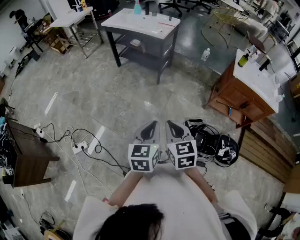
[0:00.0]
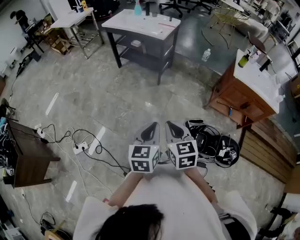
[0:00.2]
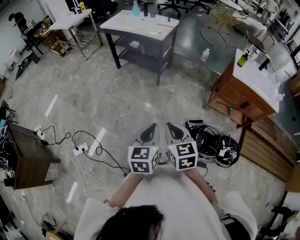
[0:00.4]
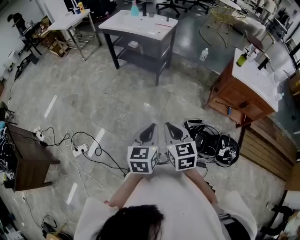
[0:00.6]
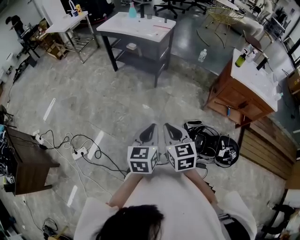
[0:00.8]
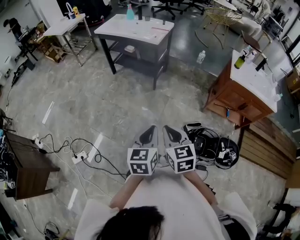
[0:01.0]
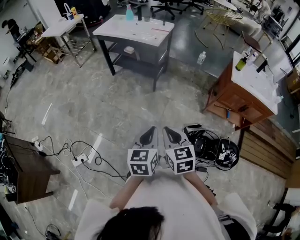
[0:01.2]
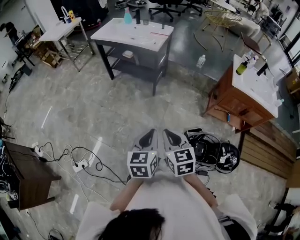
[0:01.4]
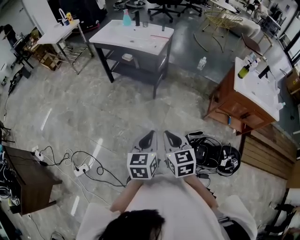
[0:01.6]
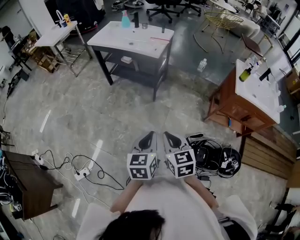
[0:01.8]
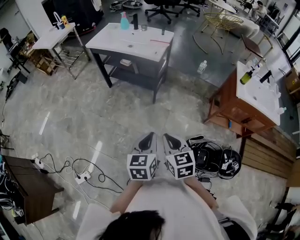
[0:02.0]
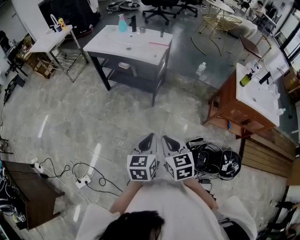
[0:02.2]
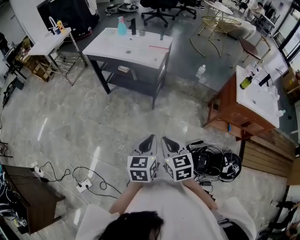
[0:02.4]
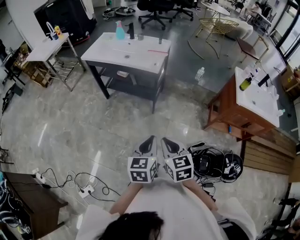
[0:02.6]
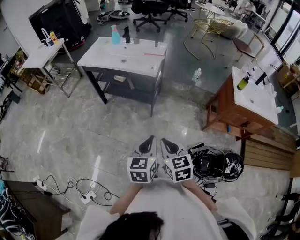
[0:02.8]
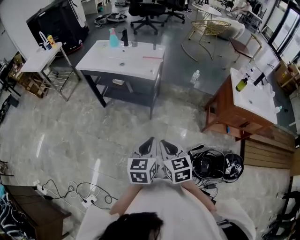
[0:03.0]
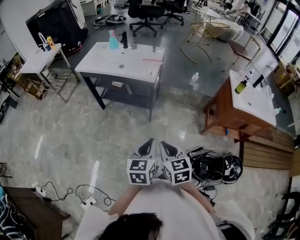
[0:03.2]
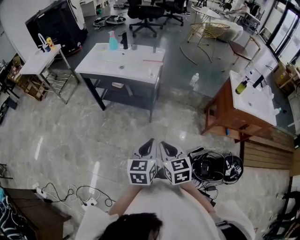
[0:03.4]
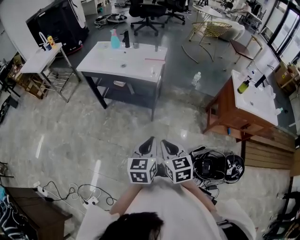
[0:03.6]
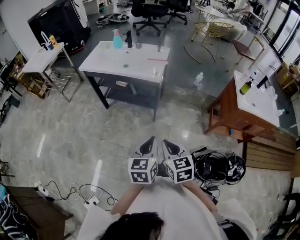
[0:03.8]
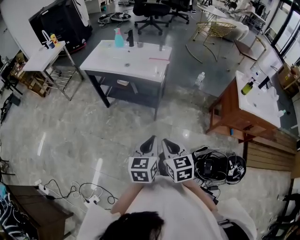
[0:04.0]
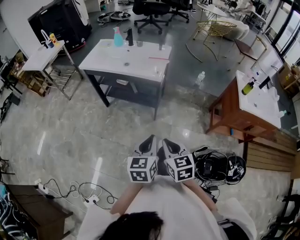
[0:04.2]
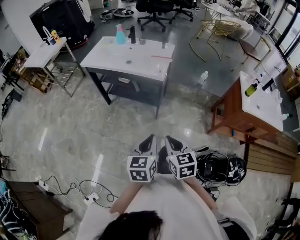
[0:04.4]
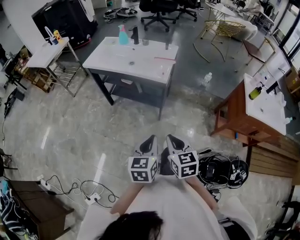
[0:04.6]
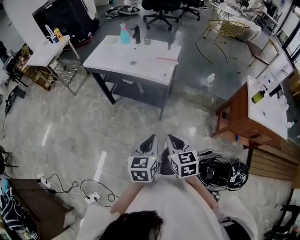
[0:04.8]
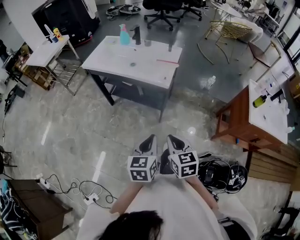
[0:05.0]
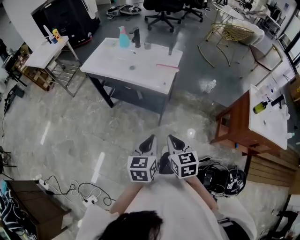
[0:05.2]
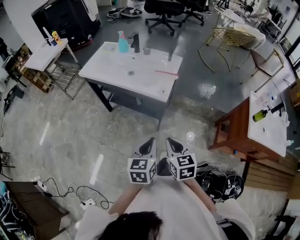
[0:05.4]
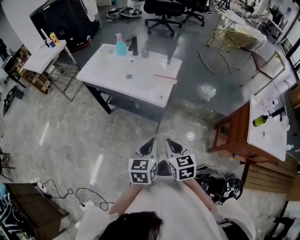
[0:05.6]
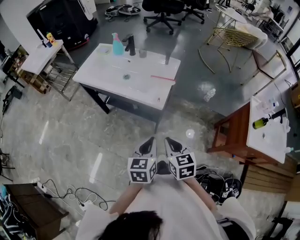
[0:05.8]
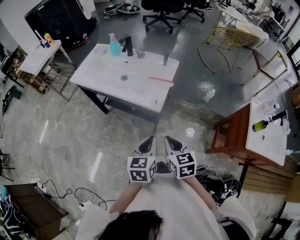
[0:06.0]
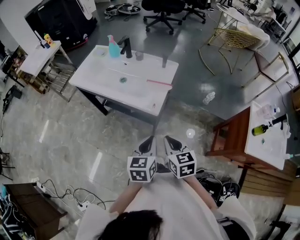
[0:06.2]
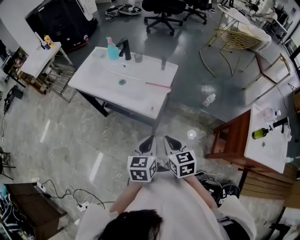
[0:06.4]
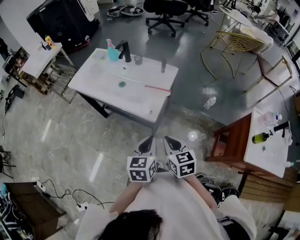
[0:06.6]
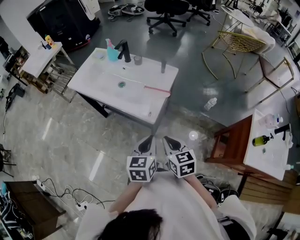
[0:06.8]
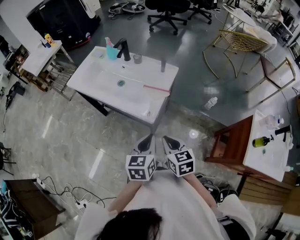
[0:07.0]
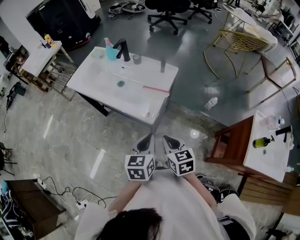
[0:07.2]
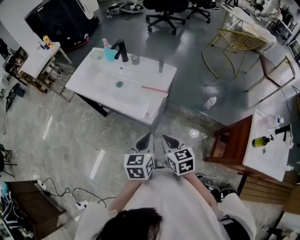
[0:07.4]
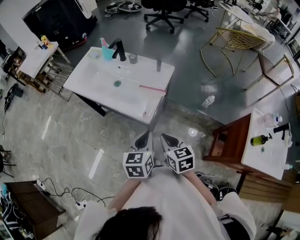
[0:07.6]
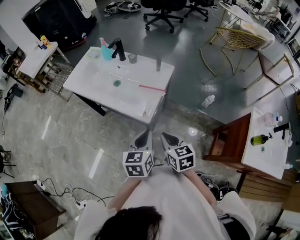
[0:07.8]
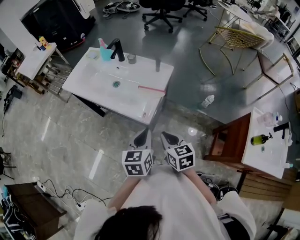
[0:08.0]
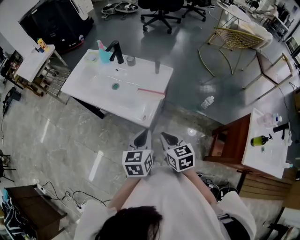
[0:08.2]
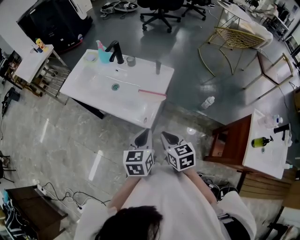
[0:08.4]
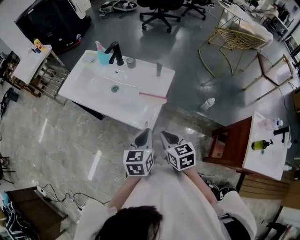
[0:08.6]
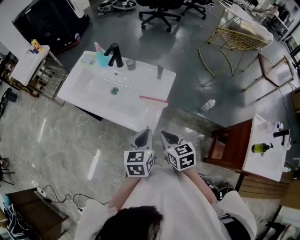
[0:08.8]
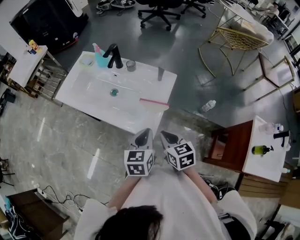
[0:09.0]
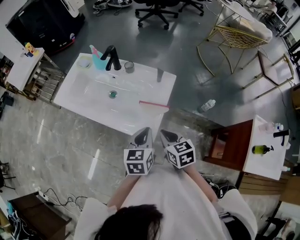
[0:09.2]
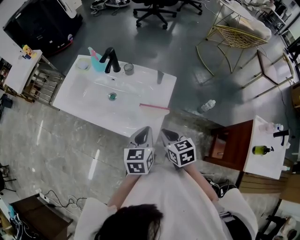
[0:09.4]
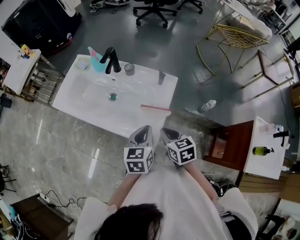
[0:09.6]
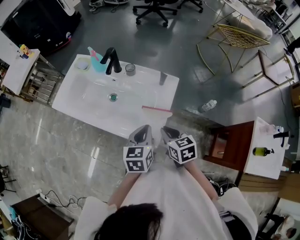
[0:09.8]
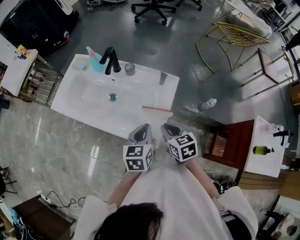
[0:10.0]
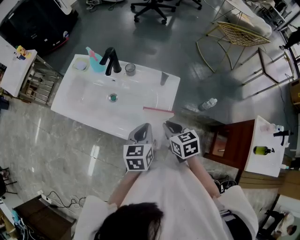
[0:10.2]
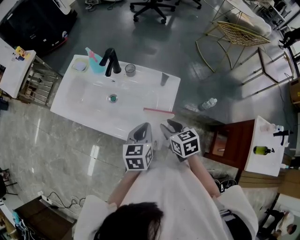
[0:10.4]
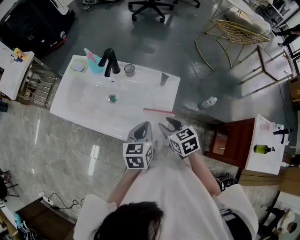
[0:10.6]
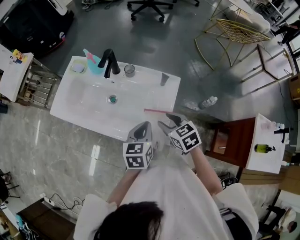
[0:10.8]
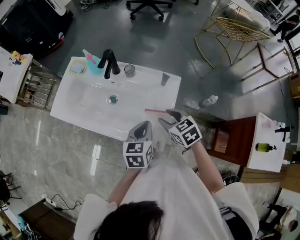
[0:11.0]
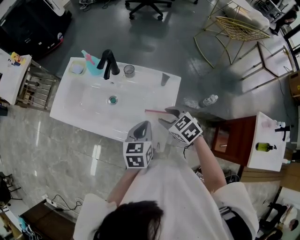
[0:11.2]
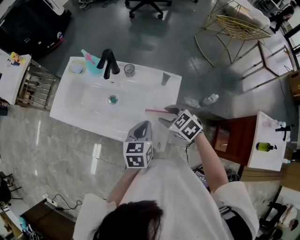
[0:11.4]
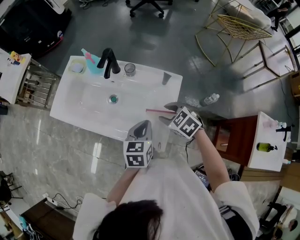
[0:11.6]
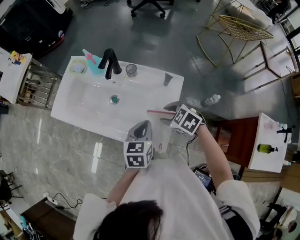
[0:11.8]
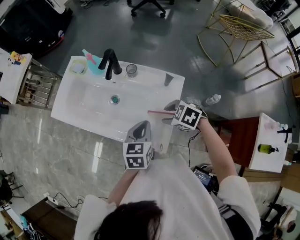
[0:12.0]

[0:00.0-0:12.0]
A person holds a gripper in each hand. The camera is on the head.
0:00.0 to 0:01.6: The two grippers go approximately 15 cm forward.
0:01.6 to 0:03.0: The right gripper heads forward and to the left, covering roughly 15 cm. The left gripper heads forward, covering approximately 15 cm.
0:03.0 to 0:04.4: The right gripper moves forward, approximately 5 cm; the left gripper ends up some 5 cm from where it was.
0:04.4 to 0:06.0: Both grippers move forward, about 25 cm.
0:06.0 to 0:07.6: The grippers both shift forward and to the right by about 10 cm.
0:07.6 to 0:09.0: Both grippers travel together forward, about 10 cm.
0:09.0 to 0:10.4: The grippers both shift forward by roughly 10 cm. The right gripper opens its fingers.
0:10.4 to 0:12.0: The right gripper moves forward, approximately 5 cm, and changes its angle by approximately 50 degrees.

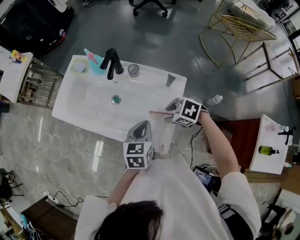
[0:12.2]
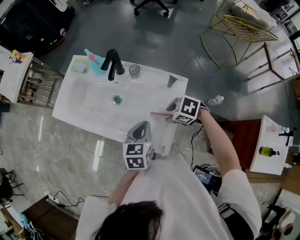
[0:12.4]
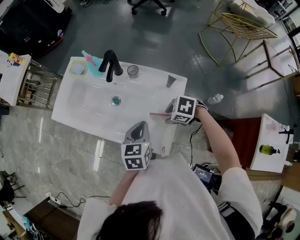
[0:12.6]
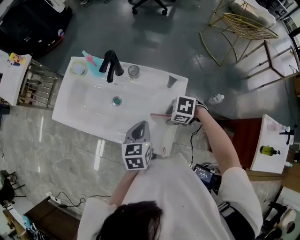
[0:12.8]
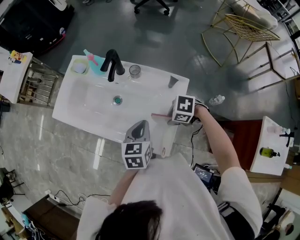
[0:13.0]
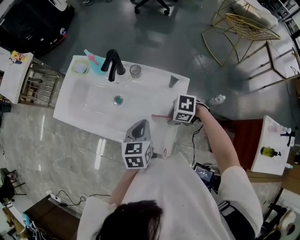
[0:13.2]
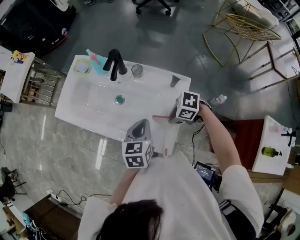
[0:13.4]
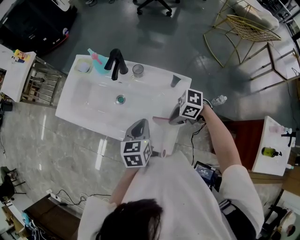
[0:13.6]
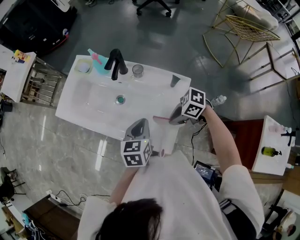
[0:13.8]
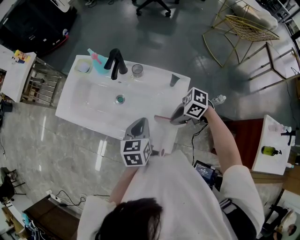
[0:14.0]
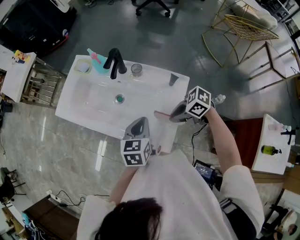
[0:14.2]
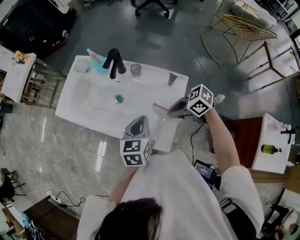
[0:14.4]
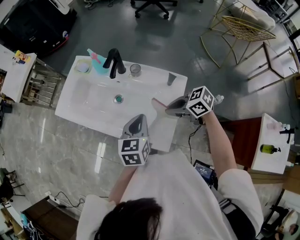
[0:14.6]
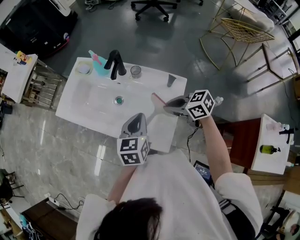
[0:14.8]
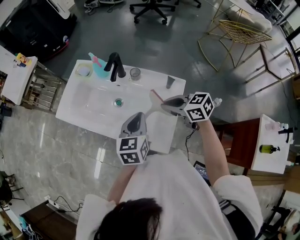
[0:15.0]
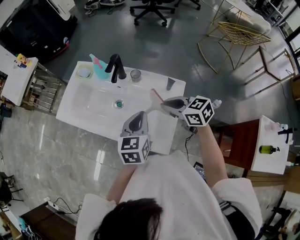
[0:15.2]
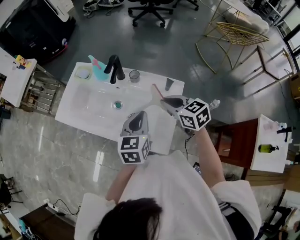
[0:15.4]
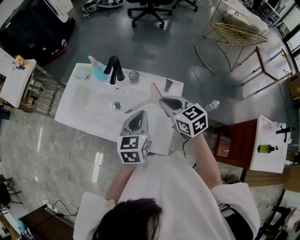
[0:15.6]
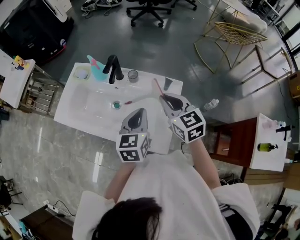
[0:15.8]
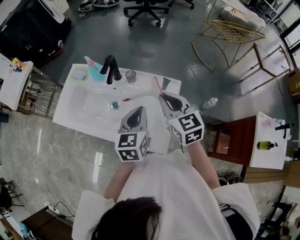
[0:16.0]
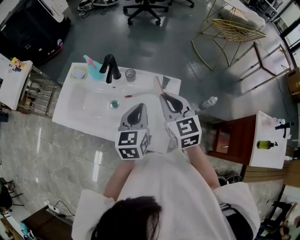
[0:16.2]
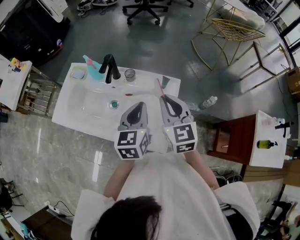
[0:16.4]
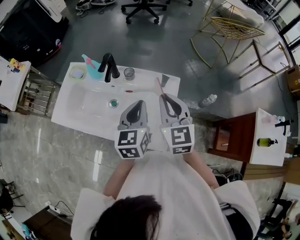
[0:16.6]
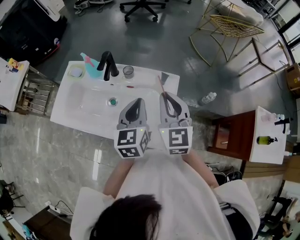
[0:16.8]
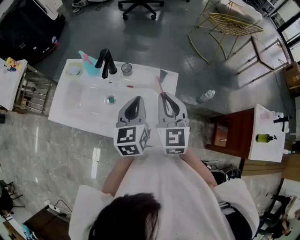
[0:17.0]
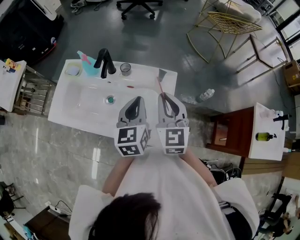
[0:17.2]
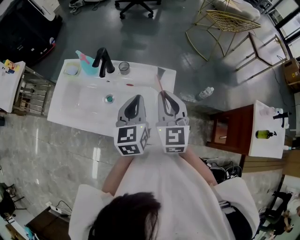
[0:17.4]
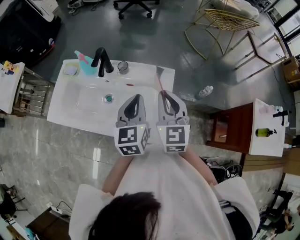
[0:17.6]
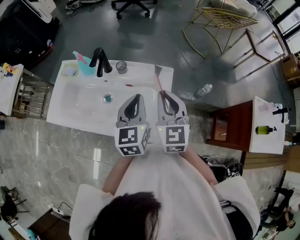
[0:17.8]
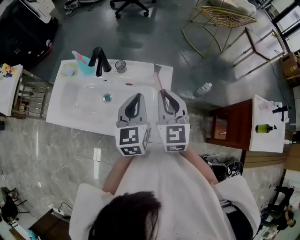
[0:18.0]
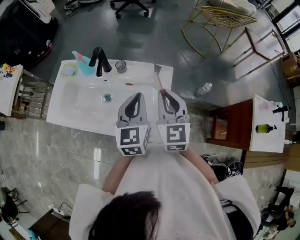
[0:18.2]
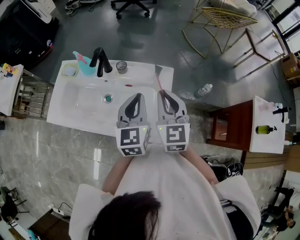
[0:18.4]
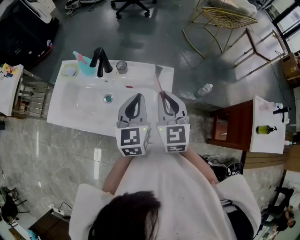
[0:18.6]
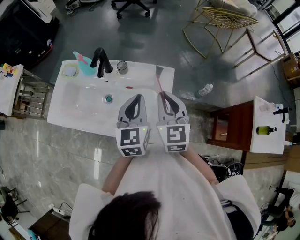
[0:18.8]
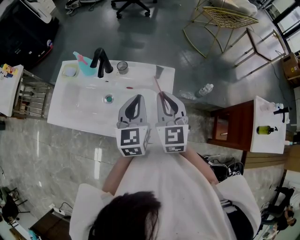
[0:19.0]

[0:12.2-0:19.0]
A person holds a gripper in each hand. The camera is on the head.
0:12.2 to 0:13.6: The right gripper rotates about 30 degrees, and closes up.
0:13.6 to 0:15.0: The right gripper moves upward, approximately 10 cm, and changes its angle by some 50 degrees. Meanwhile the left gripper is displaced upward by about 5 cm.
0:15.0 to 0:16.2: The right gripper is displaced upward by some 10 cm, and rotates about 50 degrees; the left gripper ends up about 5 cm from where it was.
0:16.2 to 0:19.0: The grippers move only a little.

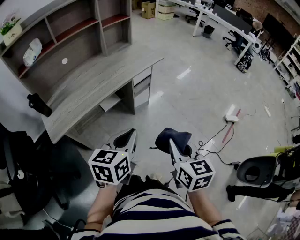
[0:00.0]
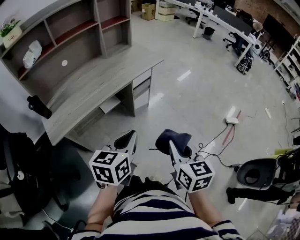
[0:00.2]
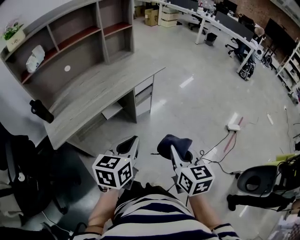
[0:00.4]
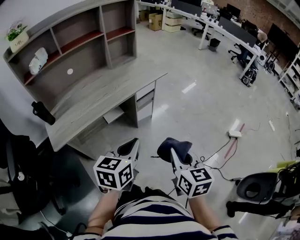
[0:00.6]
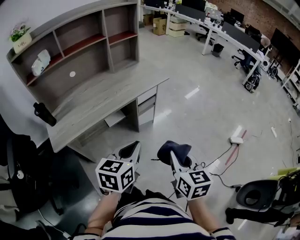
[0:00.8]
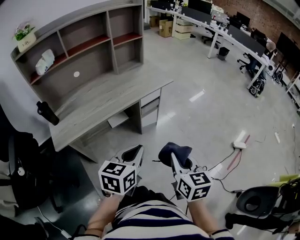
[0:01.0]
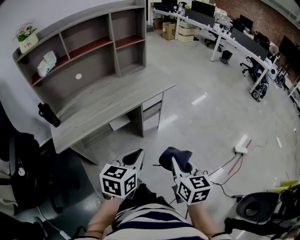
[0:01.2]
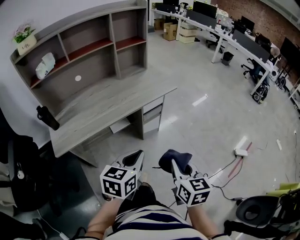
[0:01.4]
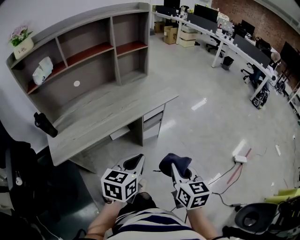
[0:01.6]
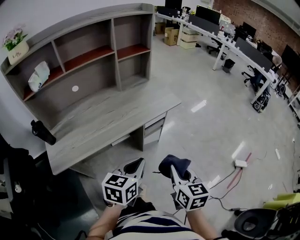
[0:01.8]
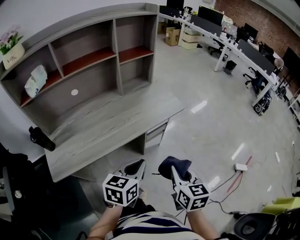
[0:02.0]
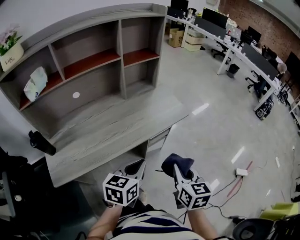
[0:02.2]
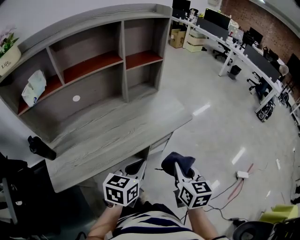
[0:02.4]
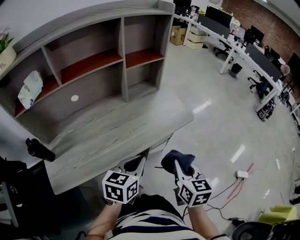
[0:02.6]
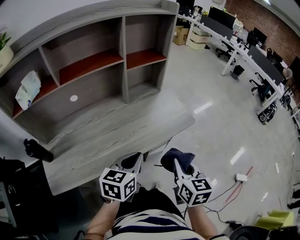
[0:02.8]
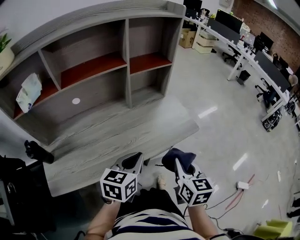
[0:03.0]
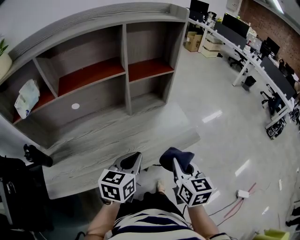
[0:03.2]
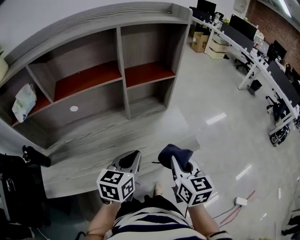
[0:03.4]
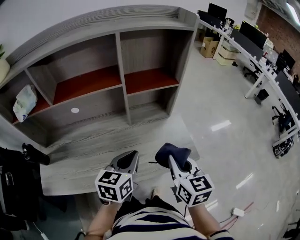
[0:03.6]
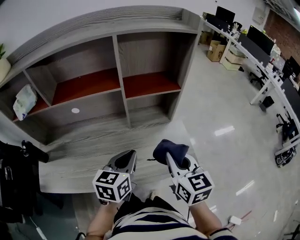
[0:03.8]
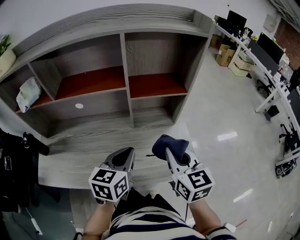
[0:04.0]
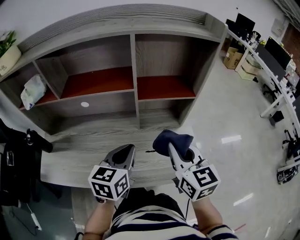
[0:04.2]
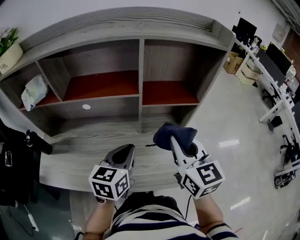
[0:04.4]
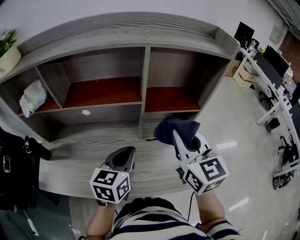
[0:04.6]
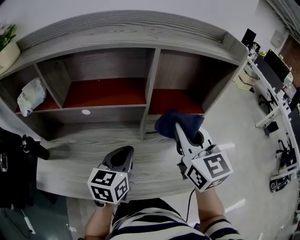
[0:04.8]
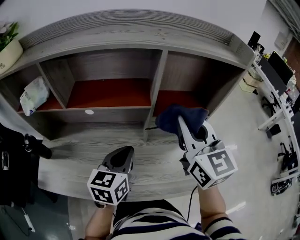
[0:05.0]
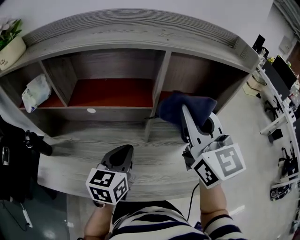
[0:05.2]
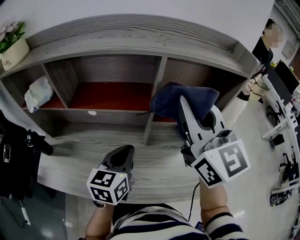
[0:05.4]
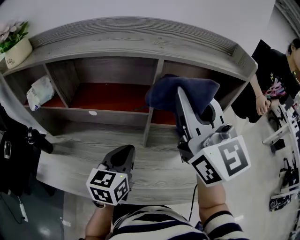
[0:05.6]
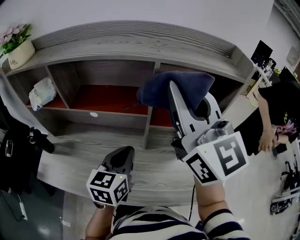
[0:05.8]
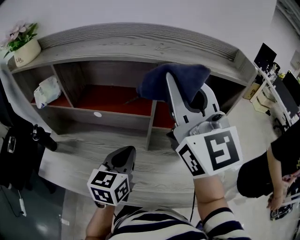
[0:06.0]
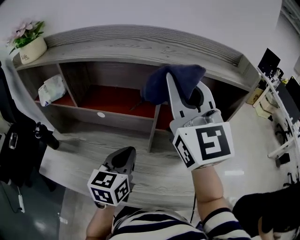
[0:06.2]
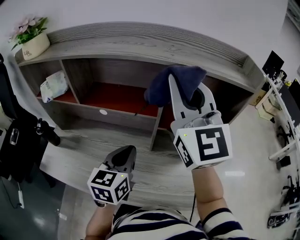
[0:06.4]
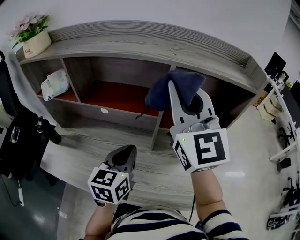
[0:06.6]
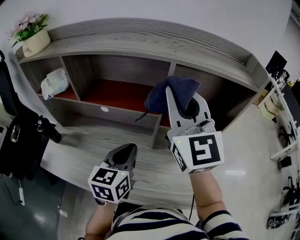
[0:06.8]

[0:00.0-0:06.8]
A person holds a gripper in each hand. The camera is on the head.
0:00.0 to 0:01.4: The grippers both shift forward by approximately 10 cm.
0:01.4 to 0:02.8: The left gripper heads forward and to the left, covering approximately 25 cm. The right gripper shifts roughly 25 cm forward.
0:02.8 to 0:04.0: The left gripper ends up some 20 cm from where it was, and swivels about 30 degrees, while the right gripper moves some 25 cm, and turns by roughly 30 degrees.
0:04.0 to 0:05.4: The right gripper moves upward and forward, about 25 cm, and turns by some 30 degrees. Meanwhile the left gripper travels forward and to the left by some 10 cm.
0:05.4 to 0:06.8: The right gripper moves approximately 5 cm.
